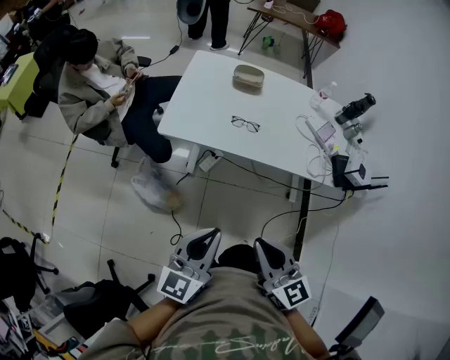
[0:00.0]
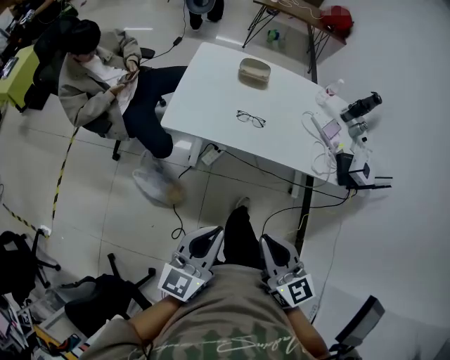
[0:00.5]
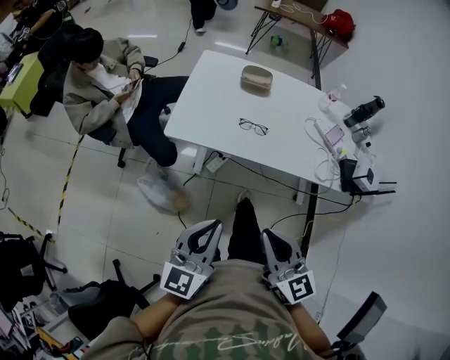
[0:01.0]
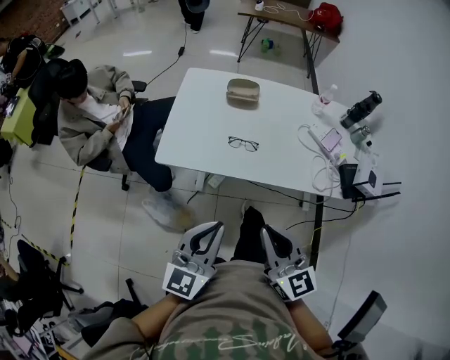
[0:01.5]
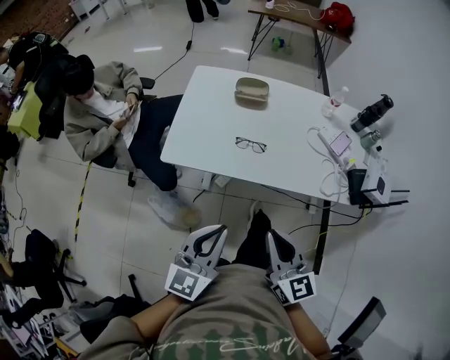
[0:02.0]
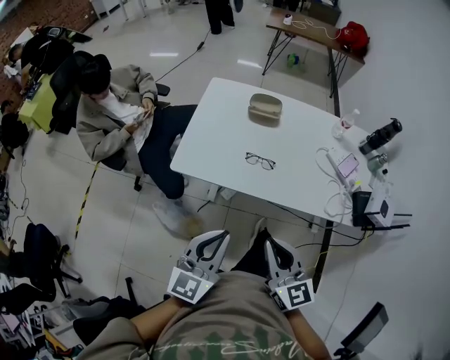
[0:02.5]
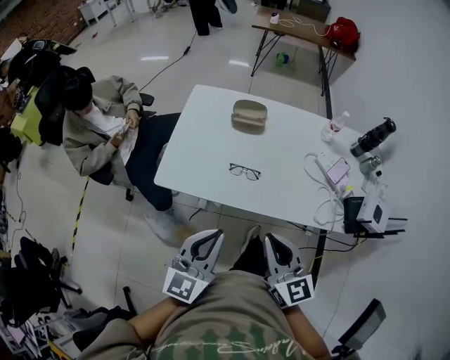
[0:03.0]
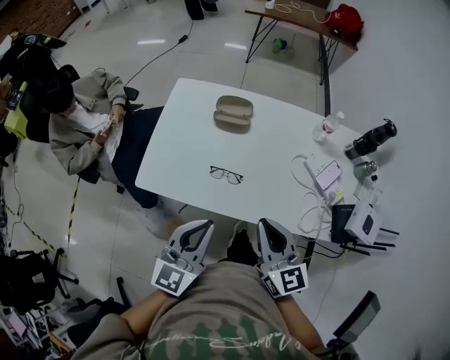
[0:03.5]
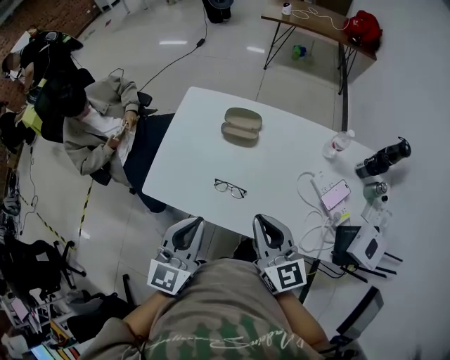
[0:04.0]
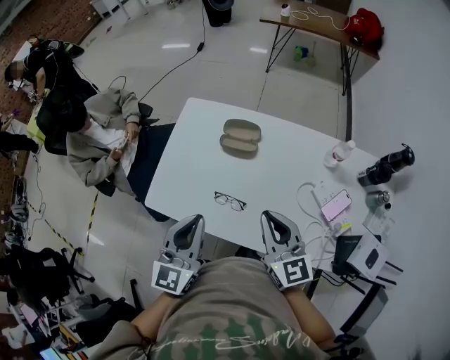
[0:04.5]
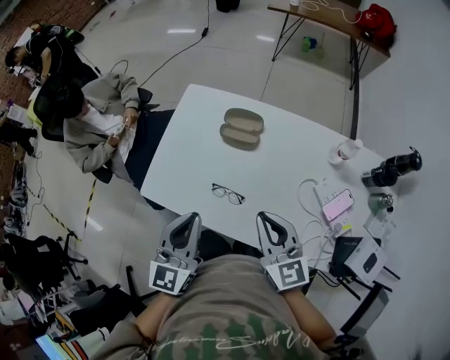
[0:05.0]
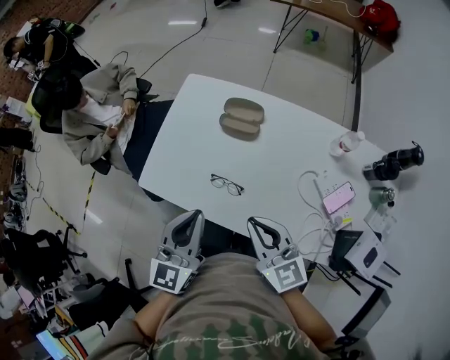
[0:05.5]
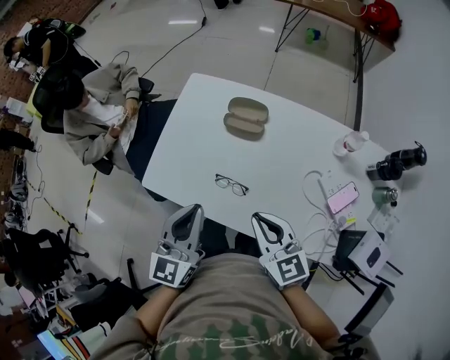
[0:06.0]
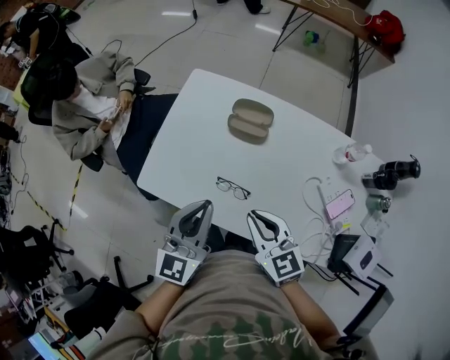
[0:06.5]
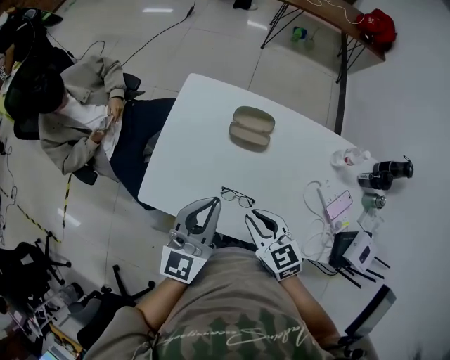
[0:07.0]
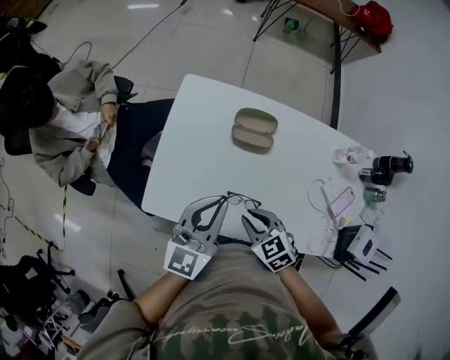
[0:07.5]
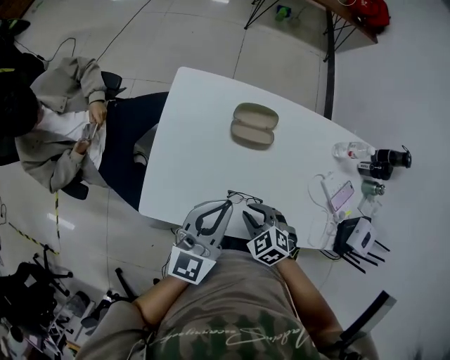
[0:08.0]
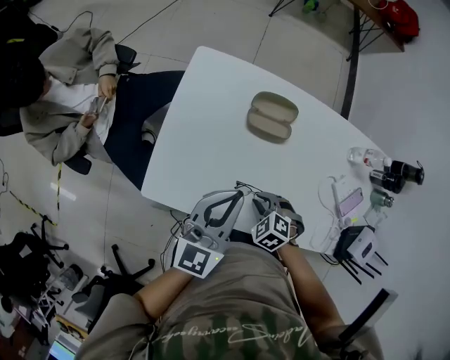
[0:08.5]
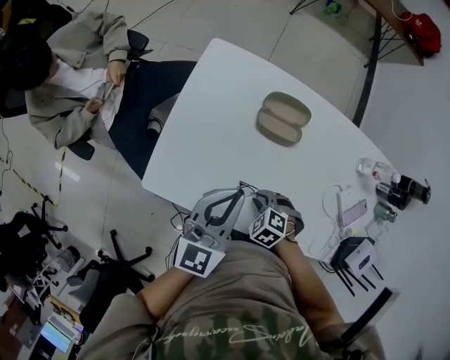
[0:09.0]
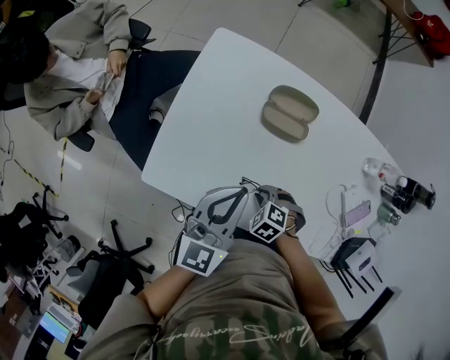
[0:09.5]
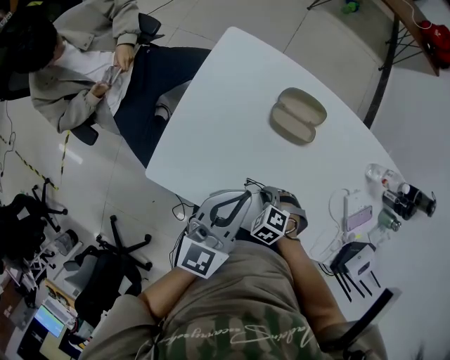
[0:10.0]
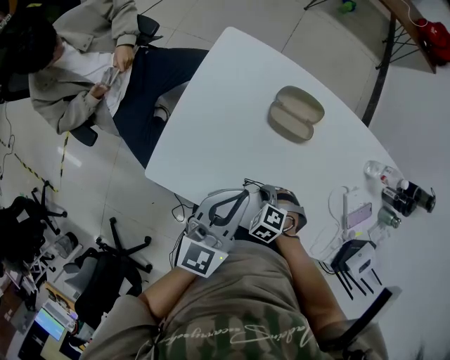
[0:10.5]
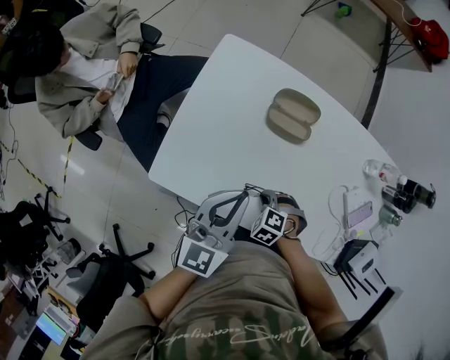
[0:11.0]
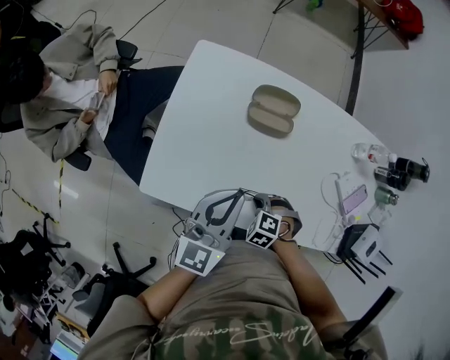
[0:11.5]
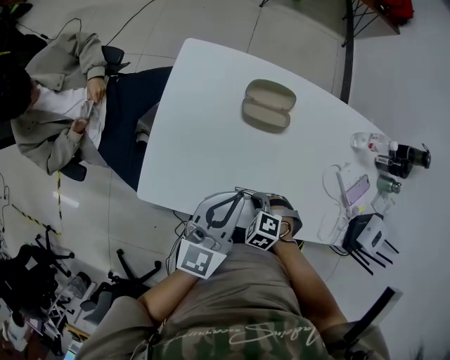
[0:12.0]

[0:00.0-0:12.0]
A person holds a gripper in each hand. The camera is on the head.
0.0 to 2.0 s: The grippers both shift forward by some 15 cm.
2.0 to 4.0 s: The grippers both shift forward by about 25 cm.
4.0 to 6.0 s: The left gripper heads forward, covering approximately 5 cm. Meanwhile the right gripper ends up approximately 5 cm from where it was.
6.0 to 8.0 s: The left gripper shifts about 10 cm forward, and turns by about 20 degrees; the right gripper moves downward, to the left and forward, about 20 cm, and tips its fingers downward by roughly 40 degrees.
8.0 to 10.0 s: The right gripper goes roughly 10 cm downward, and rotates approximately 30 degrees.
10.0 to 12.0 s: There are only small adjustments of the grippers.

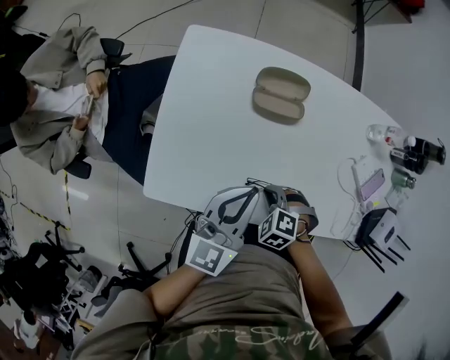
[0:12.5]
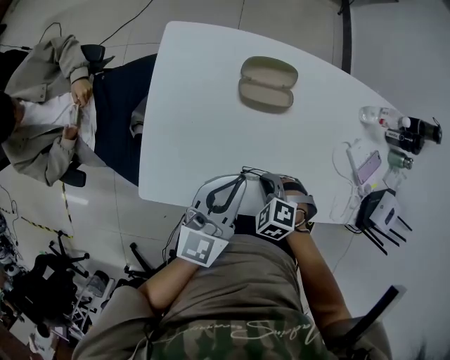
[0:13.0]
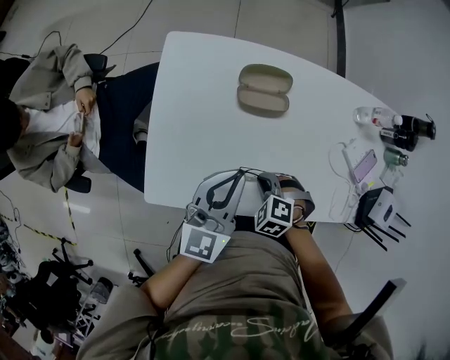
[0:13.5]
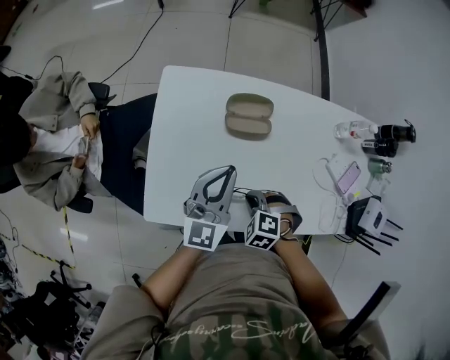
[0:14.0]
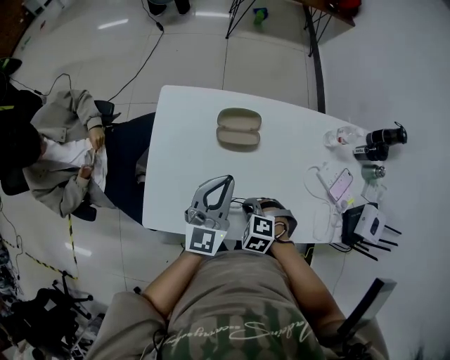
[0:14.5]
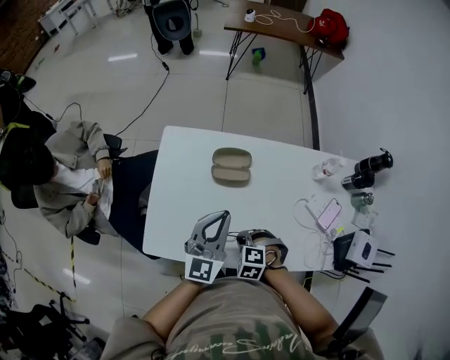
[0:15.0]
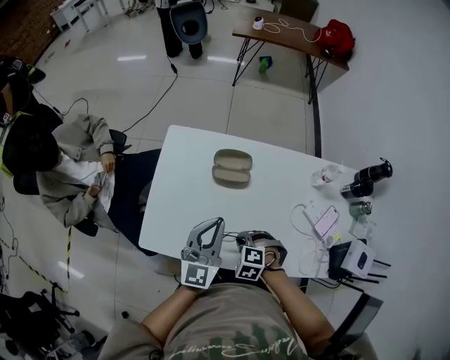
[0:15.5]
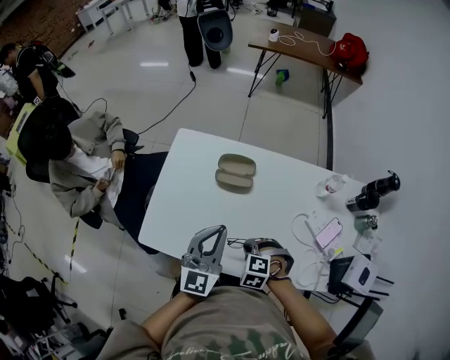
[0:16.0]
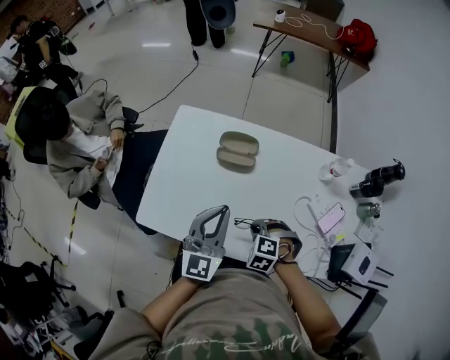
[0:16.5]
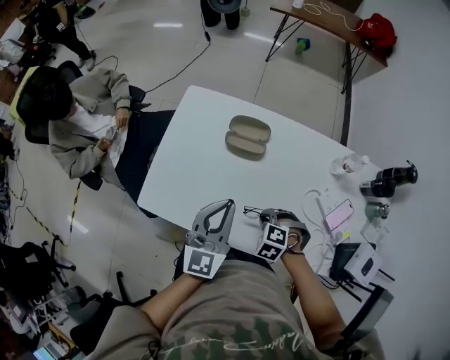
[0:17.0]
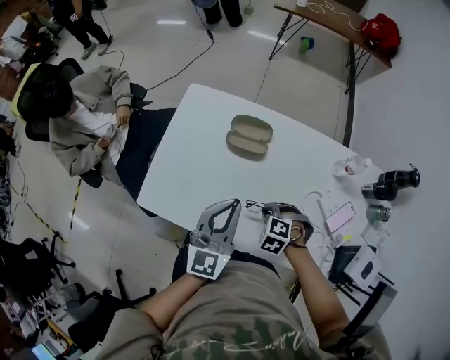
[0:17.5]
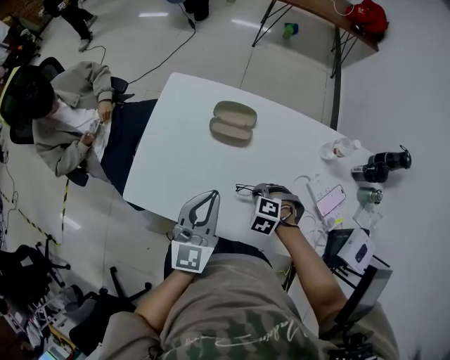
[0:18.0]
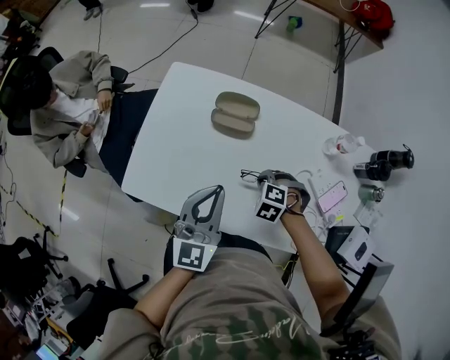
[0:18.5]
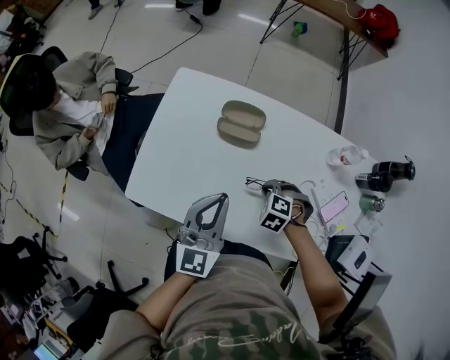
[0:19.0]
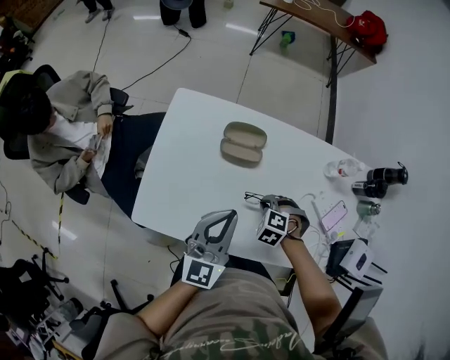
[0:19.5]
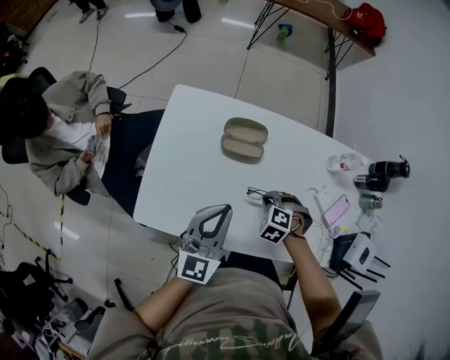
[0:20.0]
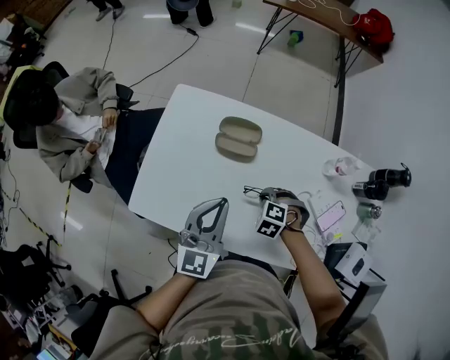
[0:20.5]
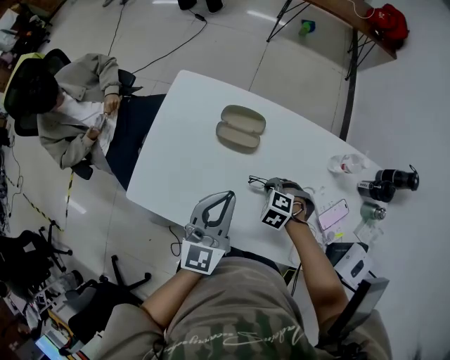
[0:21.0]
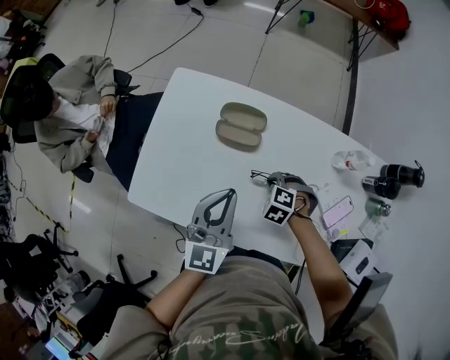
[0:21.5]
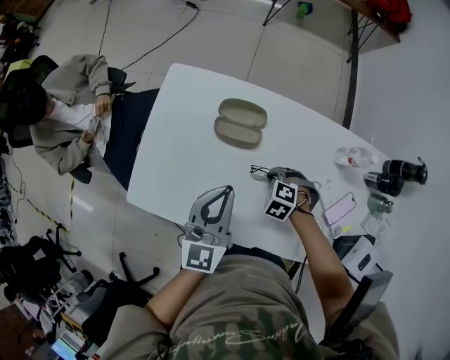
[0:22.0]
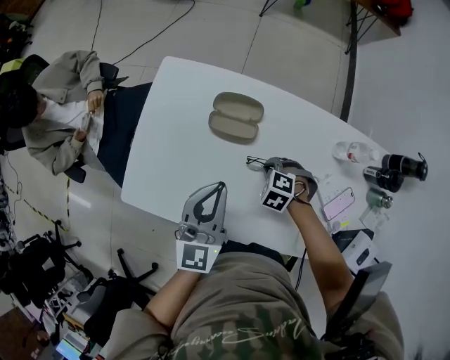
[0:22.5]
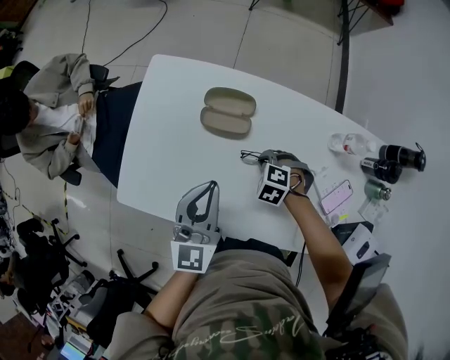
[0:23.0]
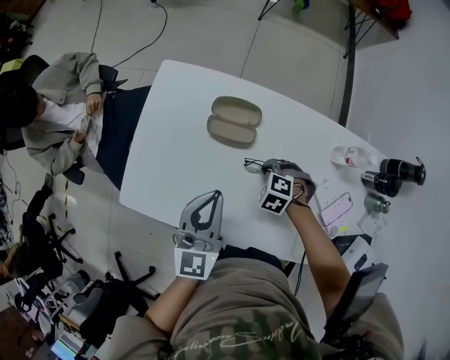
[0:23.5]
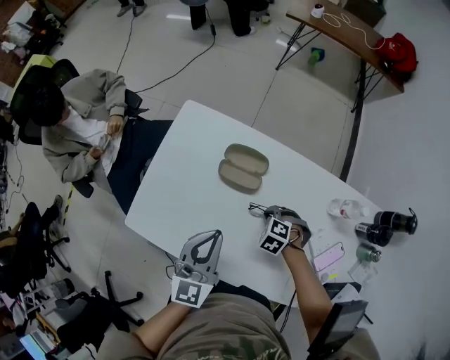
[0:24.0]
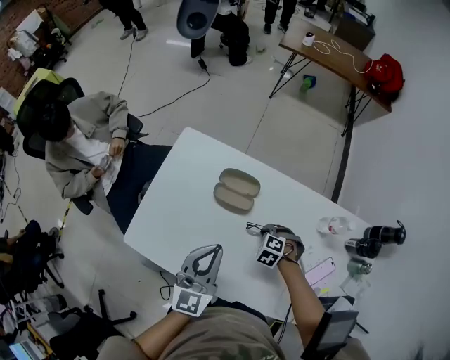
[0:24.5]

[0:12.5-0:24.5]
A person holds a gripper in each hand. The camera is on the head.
12.5 to 14.5 s: The right gripper is displaced upward by some 5 cm. Meanwhile the left gripper changes place by roughly 10 cm.
14.5 to 16.5 s: The left gripper ends up approximately 10 cm from where it was, while the right gripper changes place by some 10 cm.
16.5 to 18.5 s: The right gripper changes place by about 10 cm.
18.5 to 20.5 s: There are only small adjustments of the grippers.
20.5 to 22.5 s: The right gripper shifts by about 5 cm. The left gripper shifts by about 5 cm.
22.5 to 24.5 s: The grippers make only small movements.

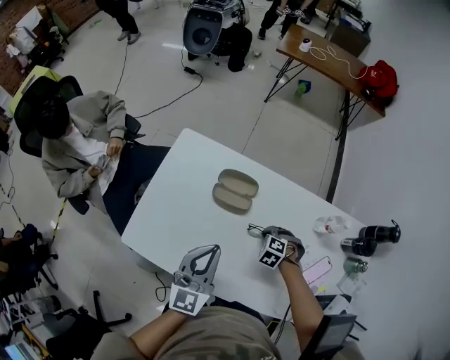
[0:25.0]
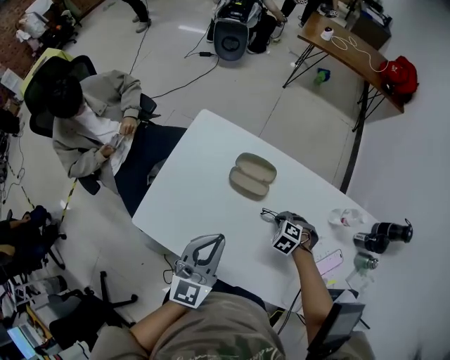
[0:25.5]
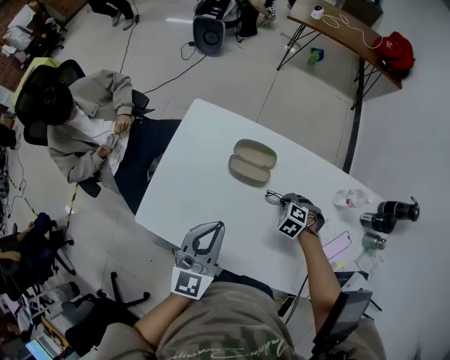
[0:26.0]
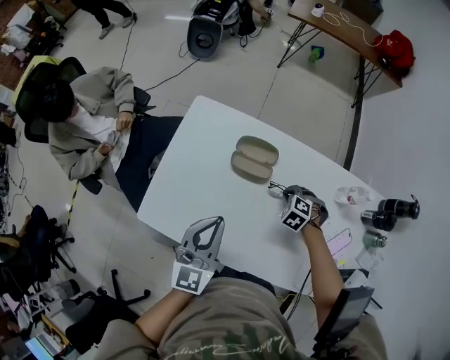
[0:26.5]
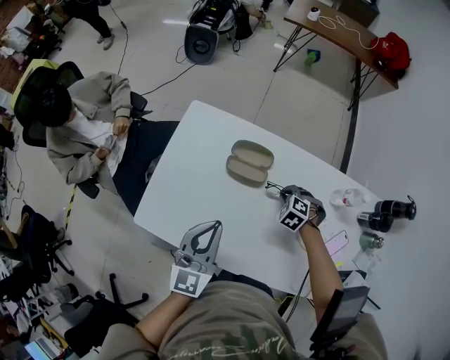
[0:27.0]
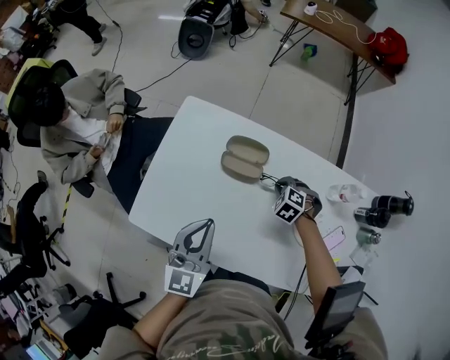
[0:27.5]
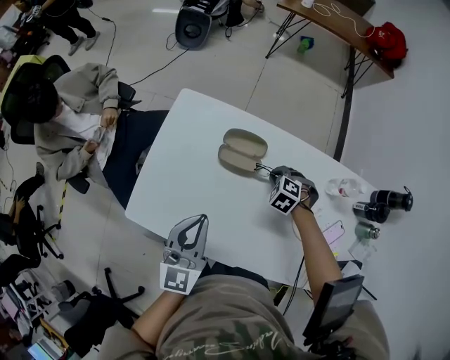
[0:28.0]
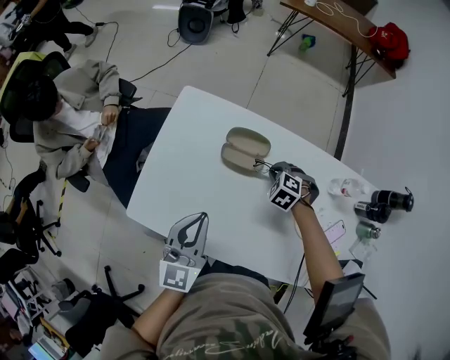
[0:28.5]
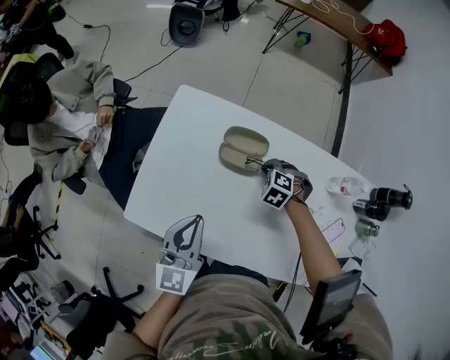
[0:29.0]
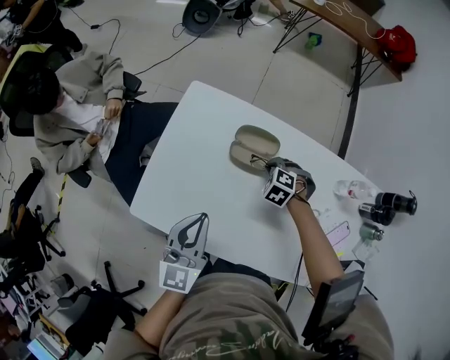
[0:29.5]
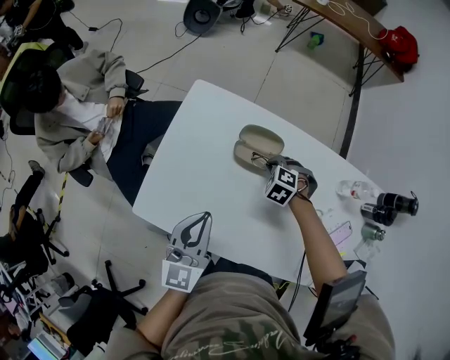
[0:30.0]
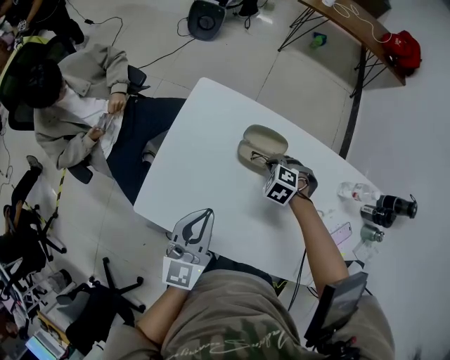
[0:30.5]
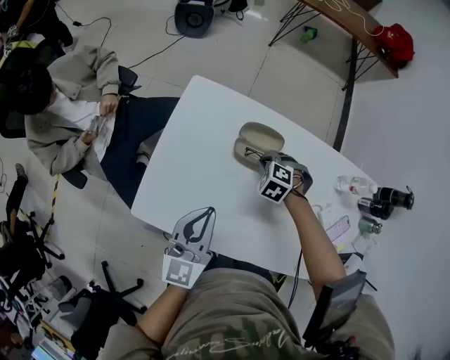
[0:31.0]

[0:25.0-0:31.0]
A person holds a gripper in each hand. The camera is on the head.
25.0 to 27.0 s: The right gripper ends up roughly 5 cm from where it was.
27.0 to 29.0 s: The right gripper travels to the left by approximately 5 cm.
29.0 to 31.0 s: The right gripper changes place by roughly 5 cm.
